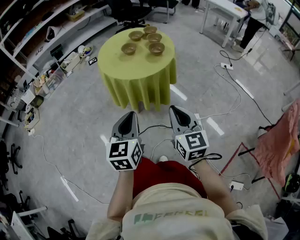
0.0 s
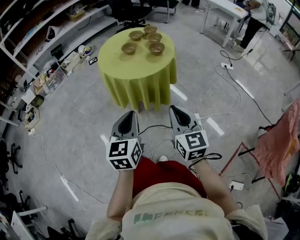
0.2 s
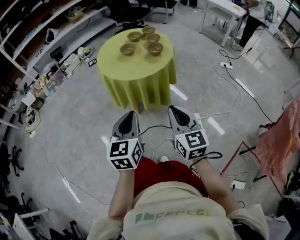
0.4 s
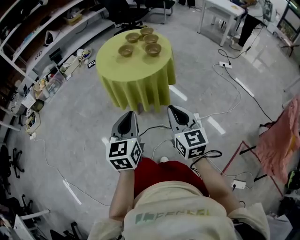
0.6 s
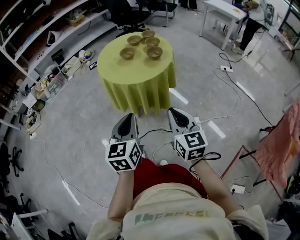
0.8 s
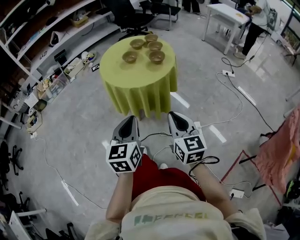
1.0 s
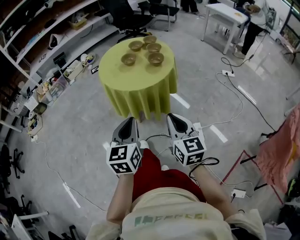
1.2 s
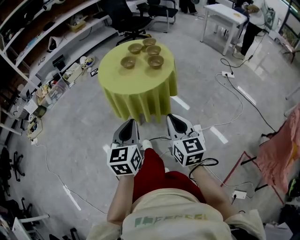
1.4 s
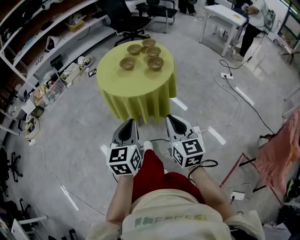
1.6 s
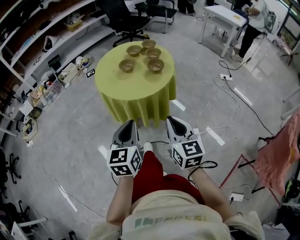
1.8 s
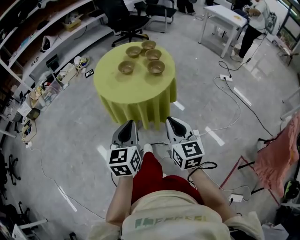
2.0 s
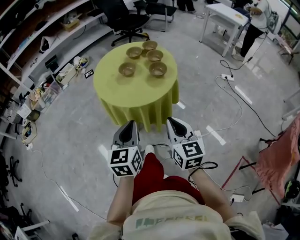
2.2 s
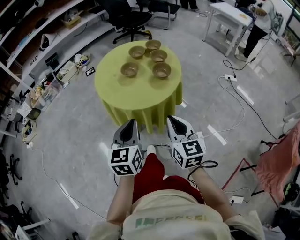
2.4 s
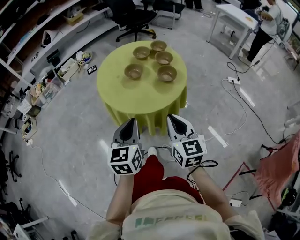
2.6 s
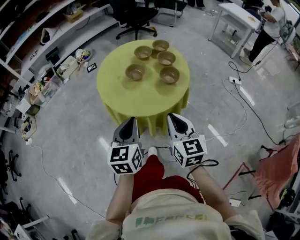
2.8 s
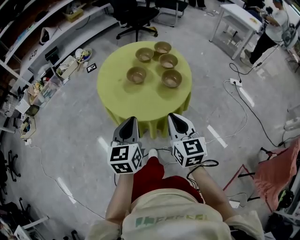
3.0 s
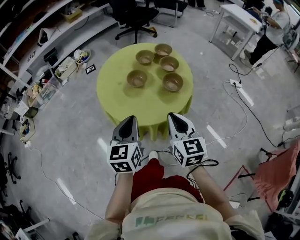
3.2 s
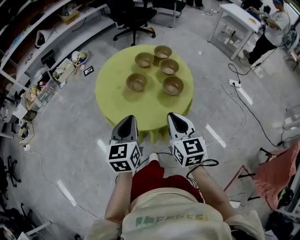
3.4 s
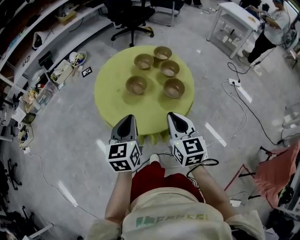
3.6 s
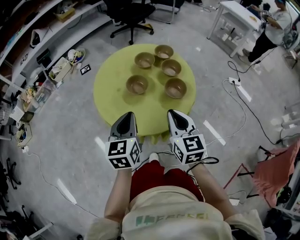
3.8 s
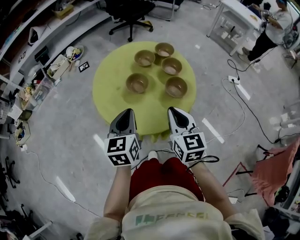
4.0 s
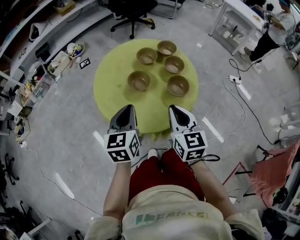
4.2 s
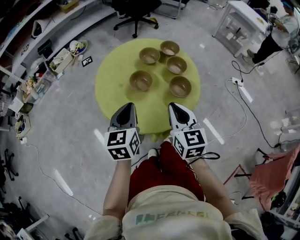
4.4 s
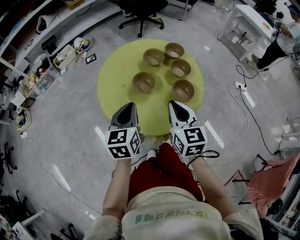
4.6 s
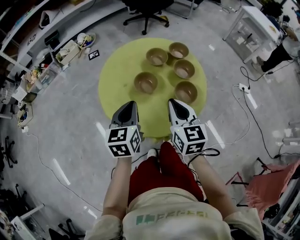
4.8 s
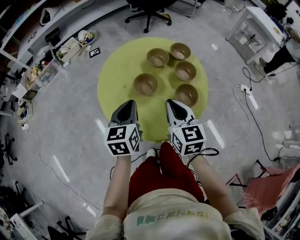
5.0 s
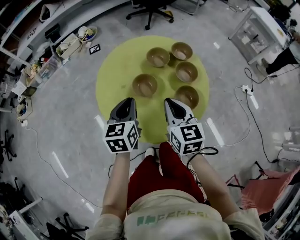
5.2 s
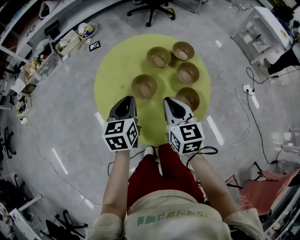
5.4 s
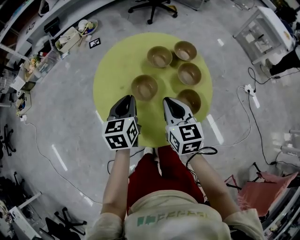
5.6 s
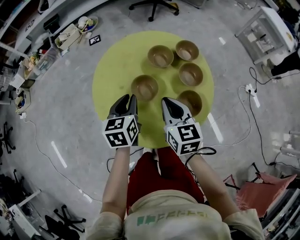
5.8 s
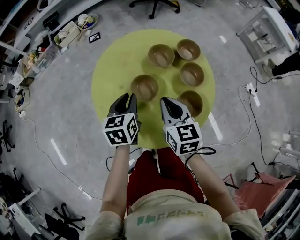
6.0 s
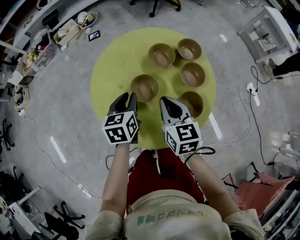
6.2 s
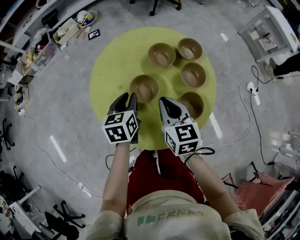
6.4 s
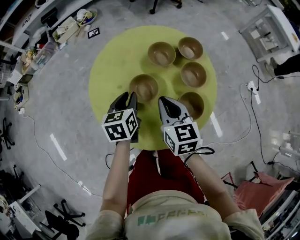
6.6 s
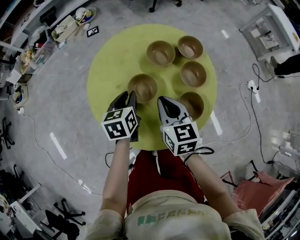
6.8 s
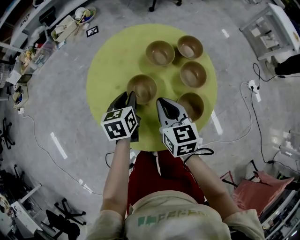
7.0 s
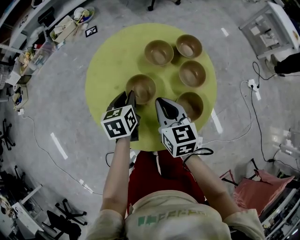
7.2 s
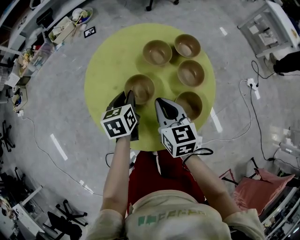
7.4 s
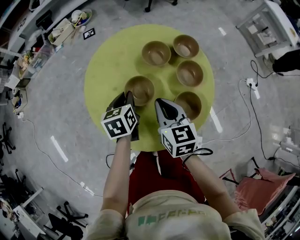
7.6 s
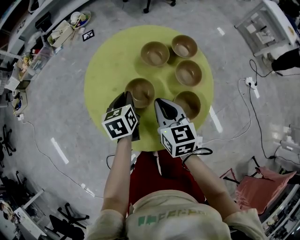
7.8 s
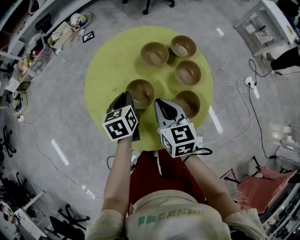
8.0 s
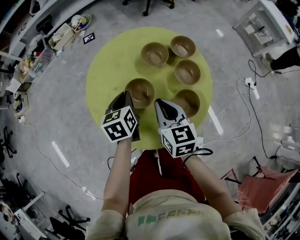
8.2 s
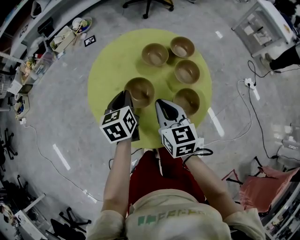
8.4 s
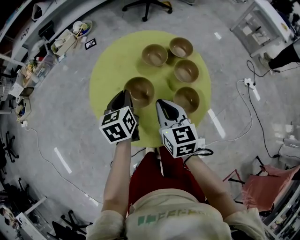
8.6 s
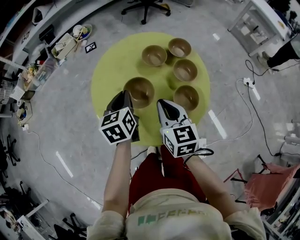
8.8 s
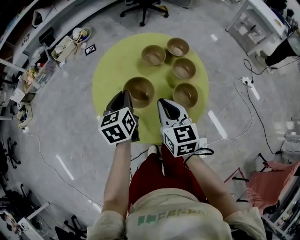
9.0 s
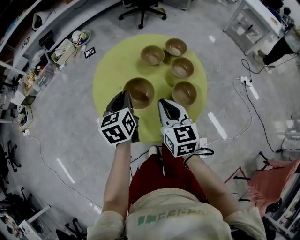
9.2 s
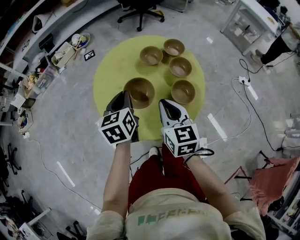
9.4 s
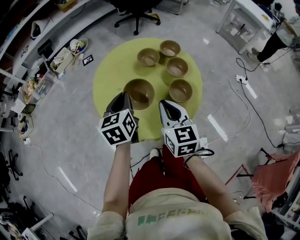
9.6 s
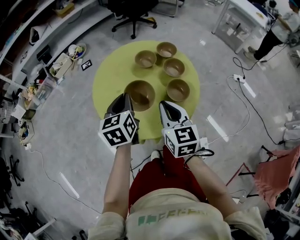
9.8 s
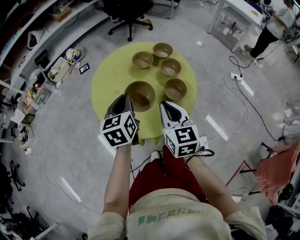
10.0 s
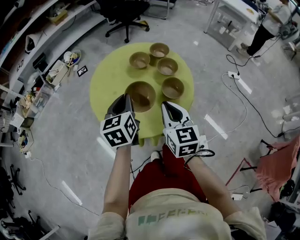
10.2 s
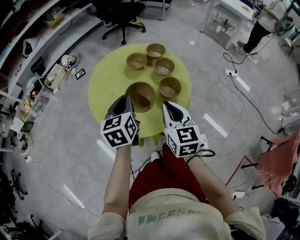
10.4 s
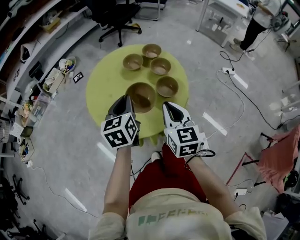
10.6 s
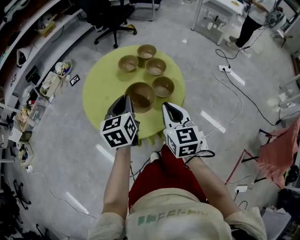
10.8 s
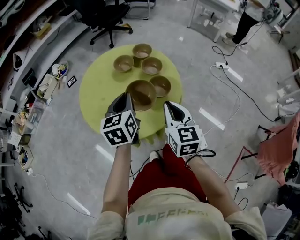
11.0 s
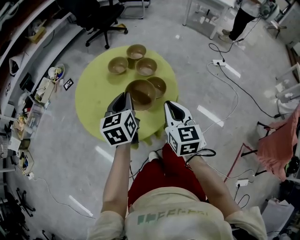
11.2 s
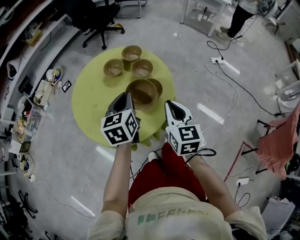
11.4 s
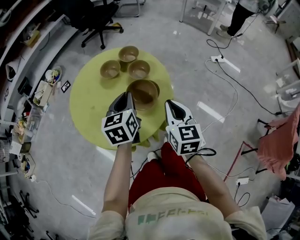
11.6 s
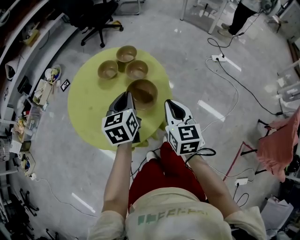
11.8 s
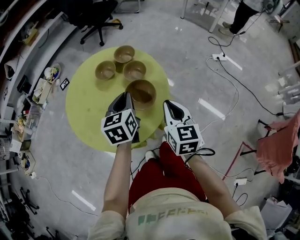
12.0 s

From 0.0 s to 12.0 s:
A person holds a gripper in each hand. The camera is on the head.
From 0.0 s to 1.6 s: Both grippers travel together forward, approximately 5 cm.
From 1.6 s to 3.0 s: The grippers both shift forward by about 25 cm.
From 3.0 s to 4.4 s: Both grippers travel together forward, approximately 15 cm.
From 4.4 s to 6.0 s: Both grippers move forward and downward, approximately 20 cm.
From 6.0 s to 7.6 s: The left gripper heads downward, covering about 5 cm.
From 7.6 s to 9.0 s: The right gripper travels backward and upward by about 10 cm, while the left gripper goes about 10 cm upward.
From 9.0 s to 10.4 s: The left gripper heads backward and upward, covering approximately 10 cm, while the right gripper goes some 10 cm backward.
From 10.4 s to 12.0 s: The left gripper heads to the right and forward, covering approximately 20 cm. Meanwhile the right gripper goes about 15 cm to the right.

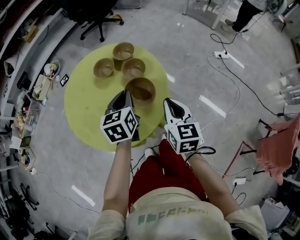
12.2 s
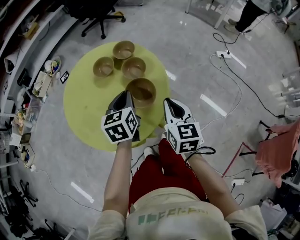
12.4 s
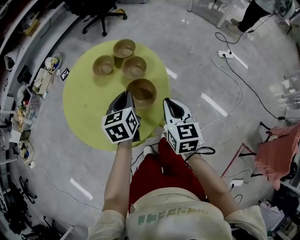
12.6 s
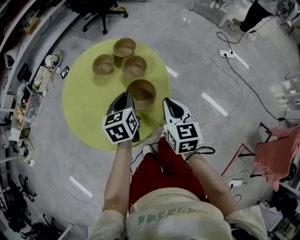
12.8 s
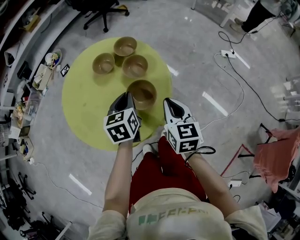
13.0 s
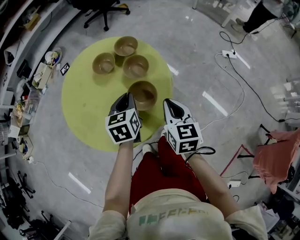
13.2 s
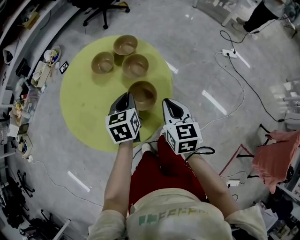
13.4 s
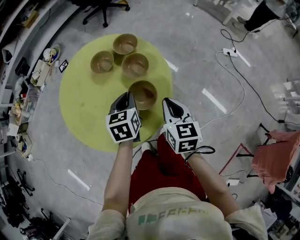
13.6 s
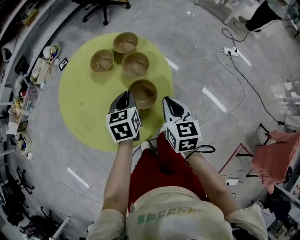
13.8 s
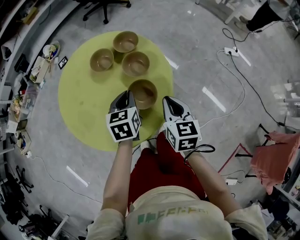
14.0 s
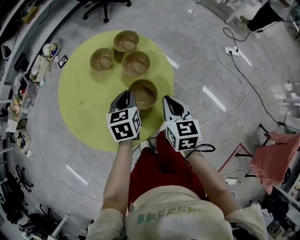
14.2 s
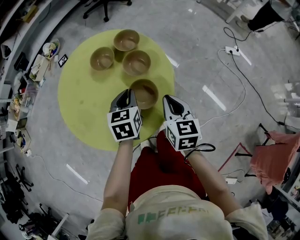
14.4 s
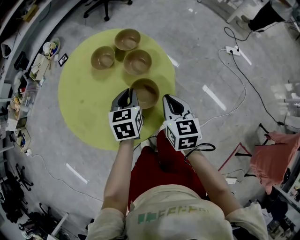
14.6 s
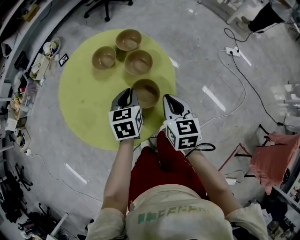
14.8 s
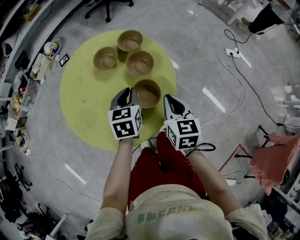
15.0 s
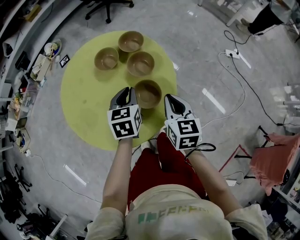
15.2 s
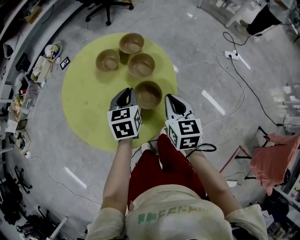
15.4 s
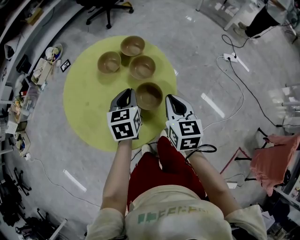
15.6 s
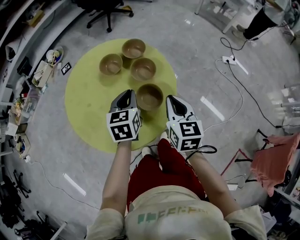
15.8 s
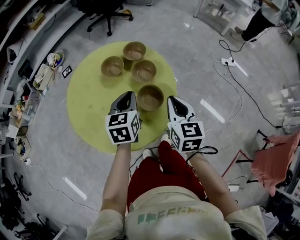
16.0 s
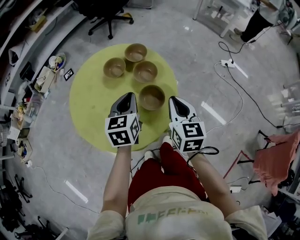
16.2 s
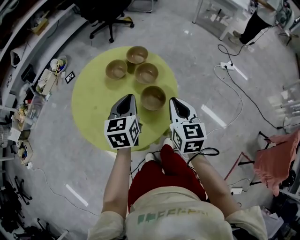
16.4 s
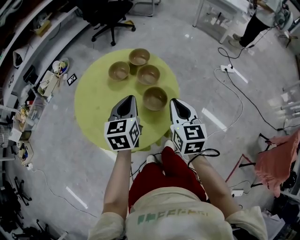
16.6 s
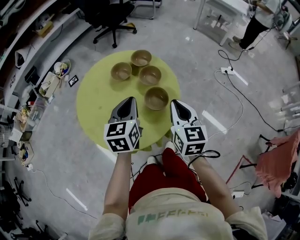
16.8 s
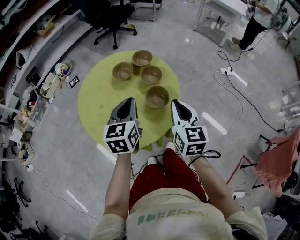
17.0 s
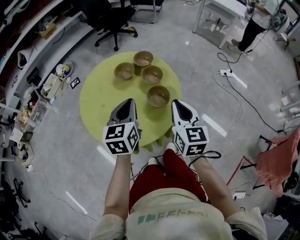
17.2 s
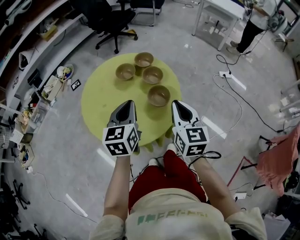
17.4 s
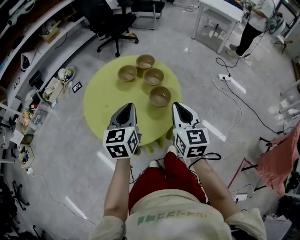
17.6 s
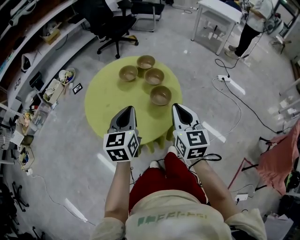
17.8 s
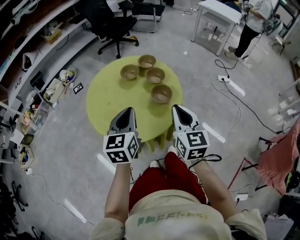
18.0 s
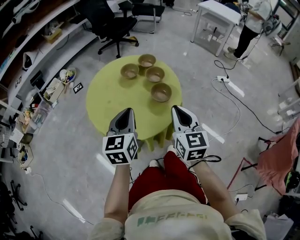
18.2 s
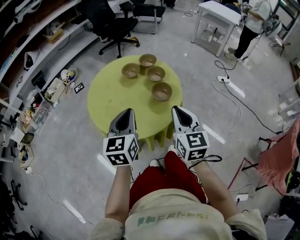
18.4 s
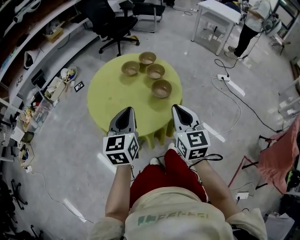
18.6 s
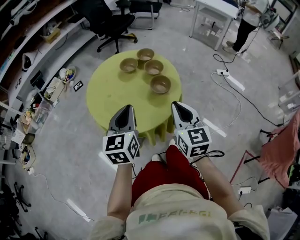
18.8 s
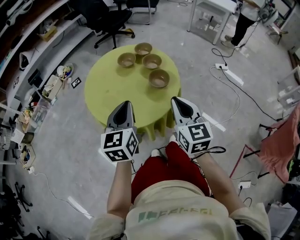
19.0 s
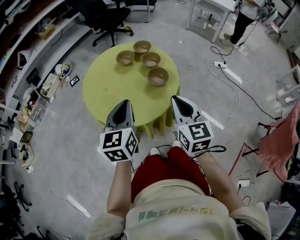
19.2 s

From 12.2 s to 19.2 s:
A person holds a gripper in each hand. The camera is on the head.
From 12.2 s to 13.6 s: The right gripper goes some 10 cm downward and forward, while the left gripper is displaced downward by some 10 cm.
From 13.6 s to 15.0 s: The grippers make only small movements.
From 15.0 s to 16.4 s: Both grippers move upward, about 10 cm.
From 16.4 s to 17.8 s: The right gripper heads backward and upward, covering approximately 15 cm, while the left gripper travels backward, upward and to the left by some 15 cm.
From 17.8 s to 19.2 s: Both grippers move backward, roughly 10 cm.

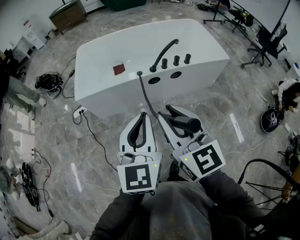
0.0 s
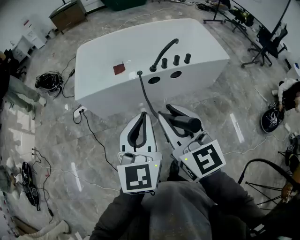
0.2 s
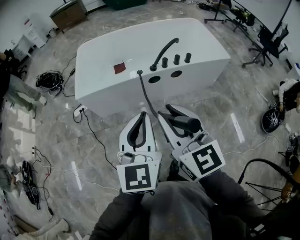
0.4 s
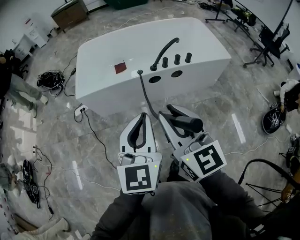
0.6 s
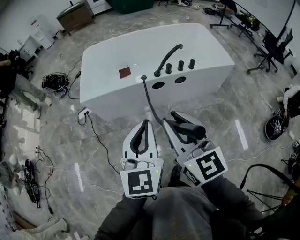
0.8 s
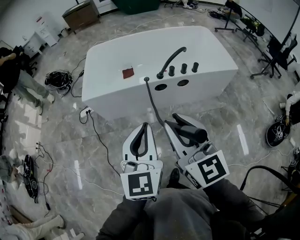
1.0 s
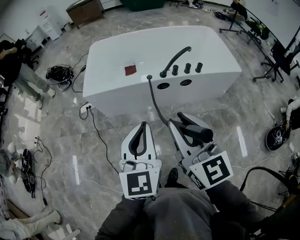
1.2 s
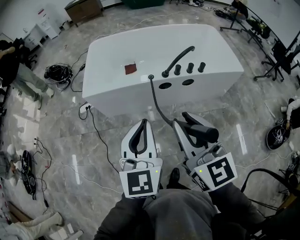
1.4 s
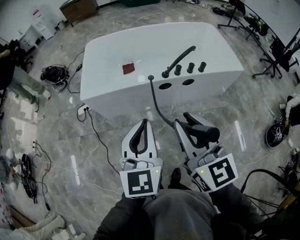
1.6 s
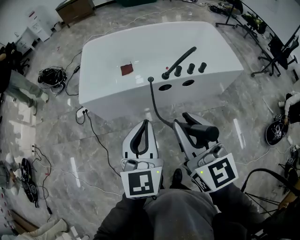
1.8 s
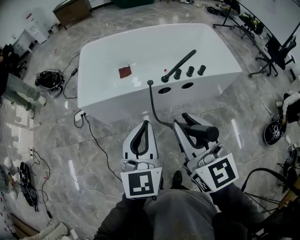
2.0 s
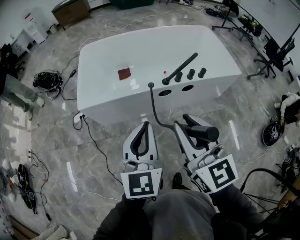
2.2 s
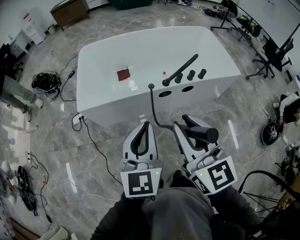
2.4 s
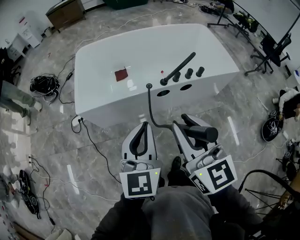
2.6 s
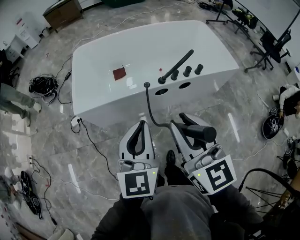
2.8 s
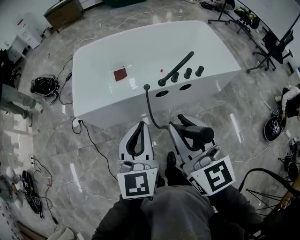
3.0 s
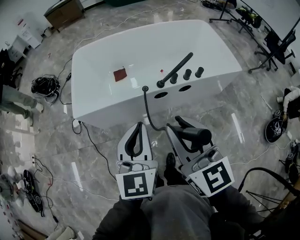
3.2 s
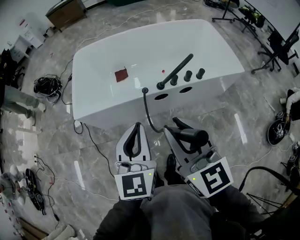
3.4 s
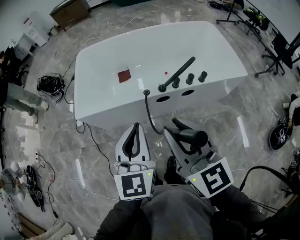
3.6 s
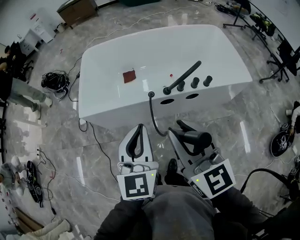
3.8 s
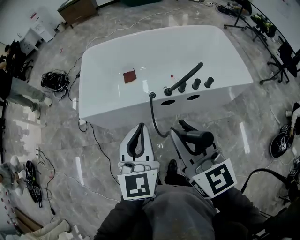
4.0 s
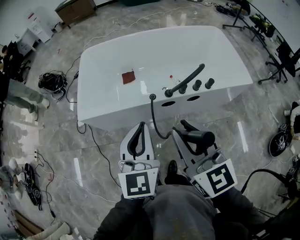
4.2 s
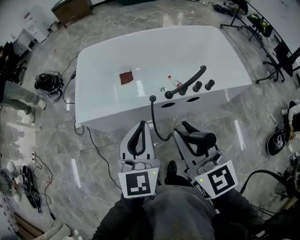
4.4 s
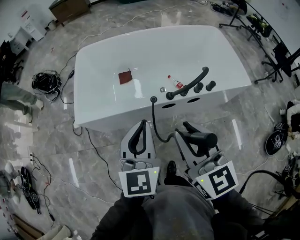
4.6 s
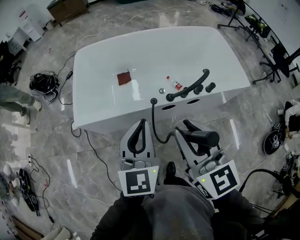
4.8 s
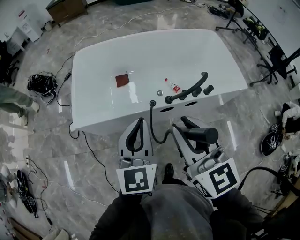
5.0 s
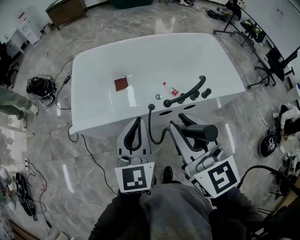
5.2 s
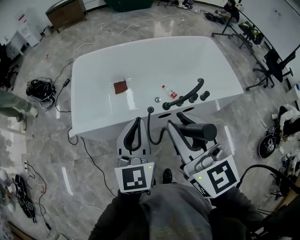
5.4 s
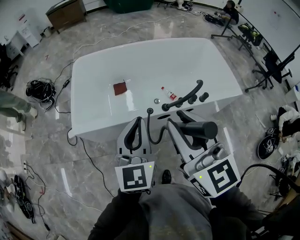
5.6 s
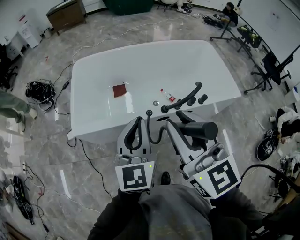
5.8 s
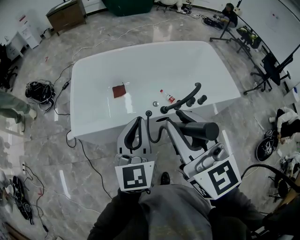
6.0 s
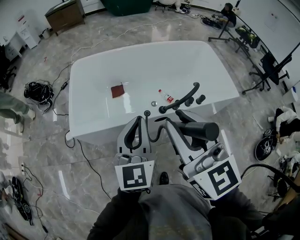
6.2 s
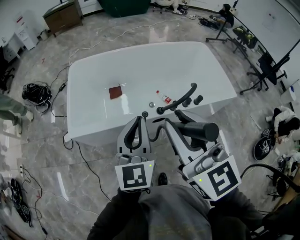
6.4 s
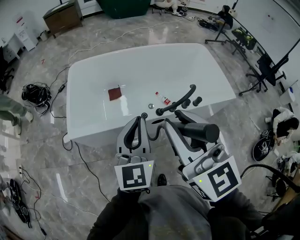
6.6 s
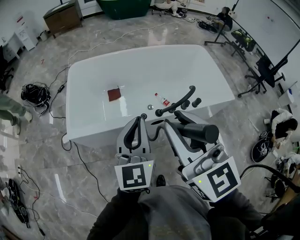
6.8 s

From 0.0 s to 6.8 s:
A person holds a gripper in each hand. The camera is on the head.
From 0.0 s to 1.4 s: The grippers stay close to where they were, moving slightly.
From 1.4 s to 2.8 s: The grippers both shift forward by about 10 cm.
From 2.8 s to 4.0 s: The left gripper shifts approximately 5 cm forward; the right gripper moves forward and to the right, roughly 10 cm.
From 4.0 s to 5.4 s: The left gripper is displaced forward by approximately 10 cm; the right gripper travels forward, upward and to the left by about 10 cm.
From 5.4 s to 6.8 s: The grippers make only small movements.
